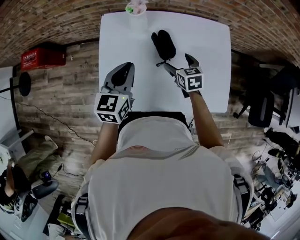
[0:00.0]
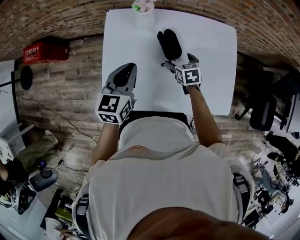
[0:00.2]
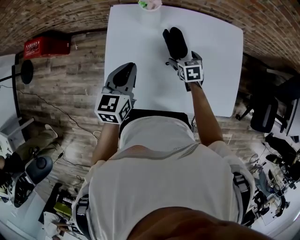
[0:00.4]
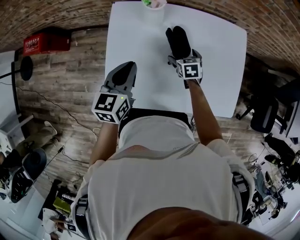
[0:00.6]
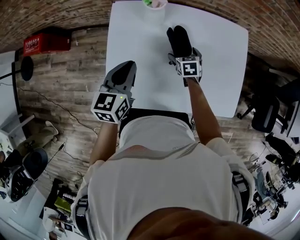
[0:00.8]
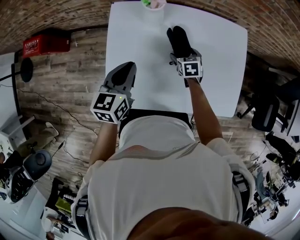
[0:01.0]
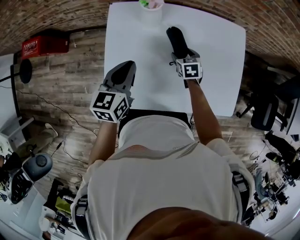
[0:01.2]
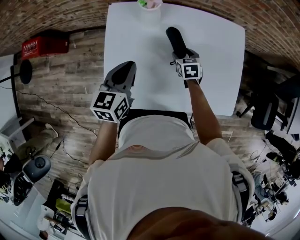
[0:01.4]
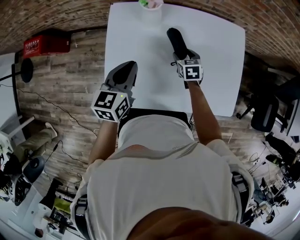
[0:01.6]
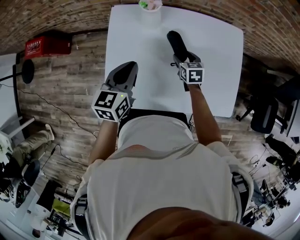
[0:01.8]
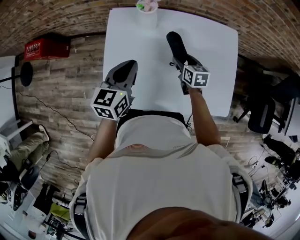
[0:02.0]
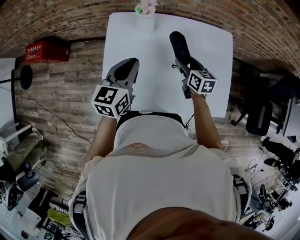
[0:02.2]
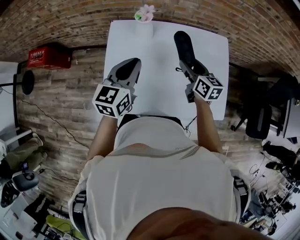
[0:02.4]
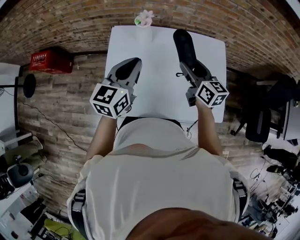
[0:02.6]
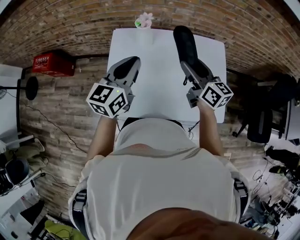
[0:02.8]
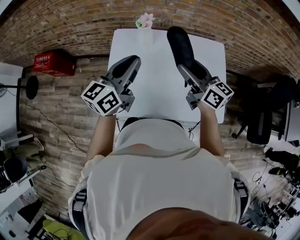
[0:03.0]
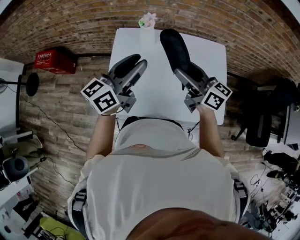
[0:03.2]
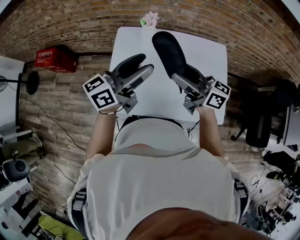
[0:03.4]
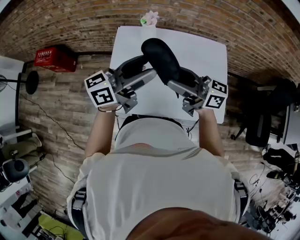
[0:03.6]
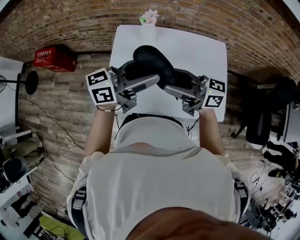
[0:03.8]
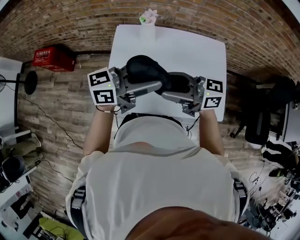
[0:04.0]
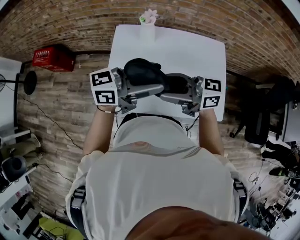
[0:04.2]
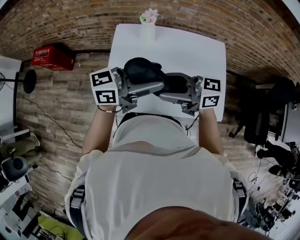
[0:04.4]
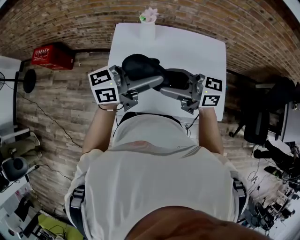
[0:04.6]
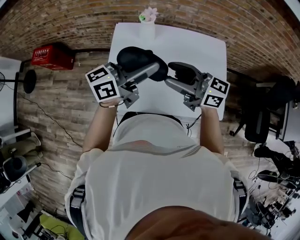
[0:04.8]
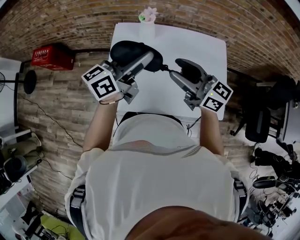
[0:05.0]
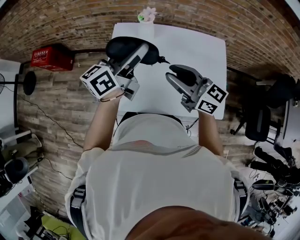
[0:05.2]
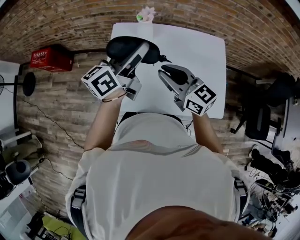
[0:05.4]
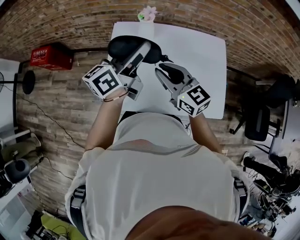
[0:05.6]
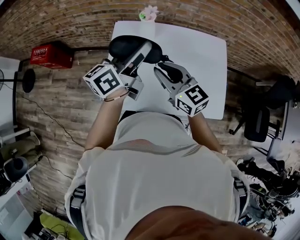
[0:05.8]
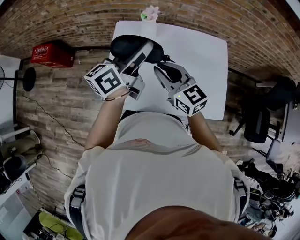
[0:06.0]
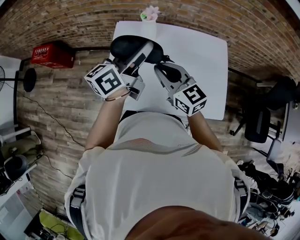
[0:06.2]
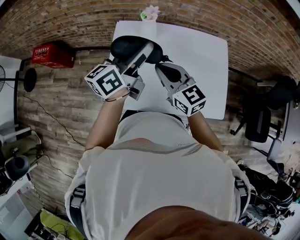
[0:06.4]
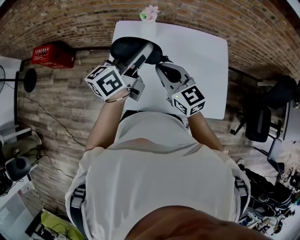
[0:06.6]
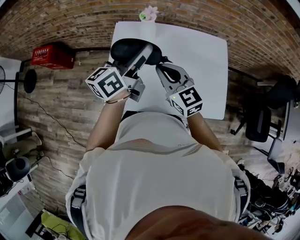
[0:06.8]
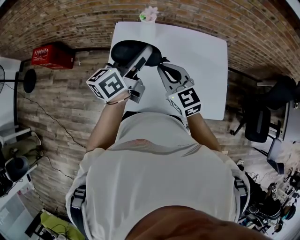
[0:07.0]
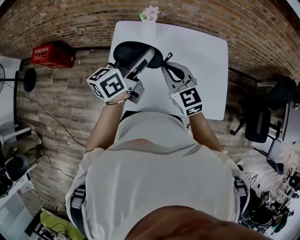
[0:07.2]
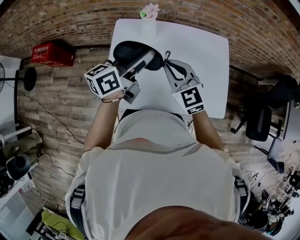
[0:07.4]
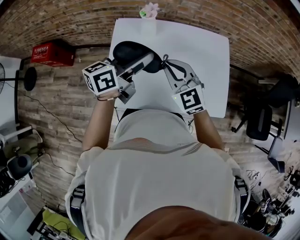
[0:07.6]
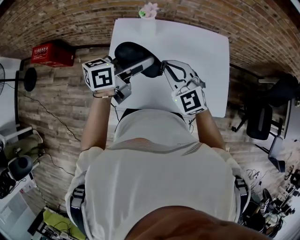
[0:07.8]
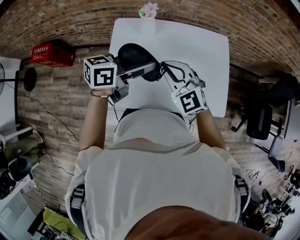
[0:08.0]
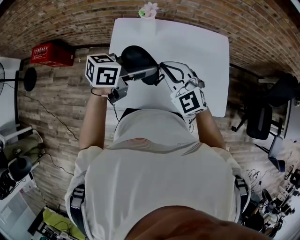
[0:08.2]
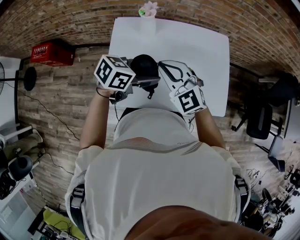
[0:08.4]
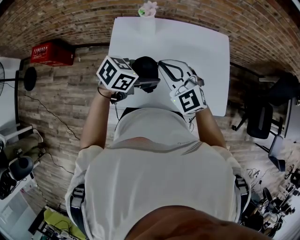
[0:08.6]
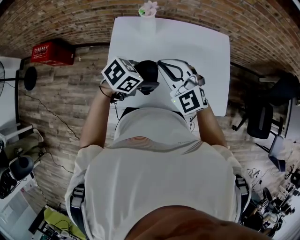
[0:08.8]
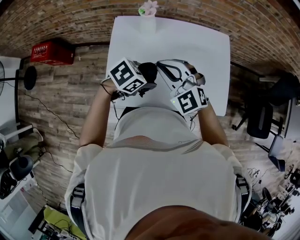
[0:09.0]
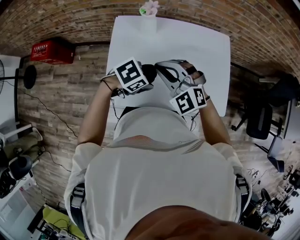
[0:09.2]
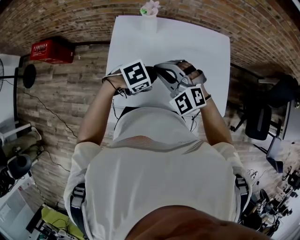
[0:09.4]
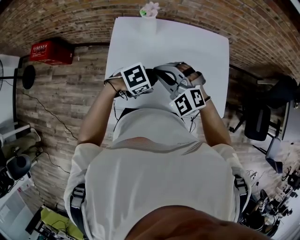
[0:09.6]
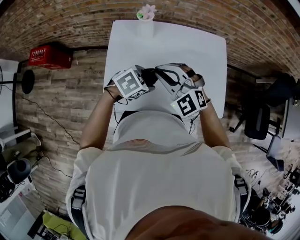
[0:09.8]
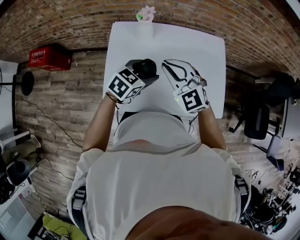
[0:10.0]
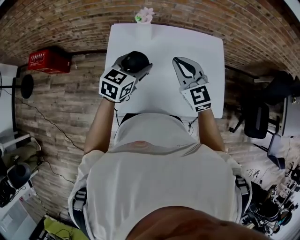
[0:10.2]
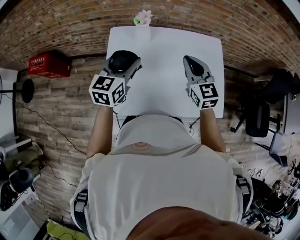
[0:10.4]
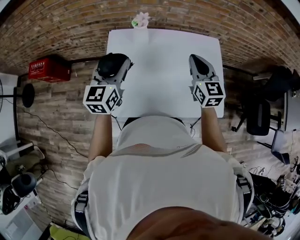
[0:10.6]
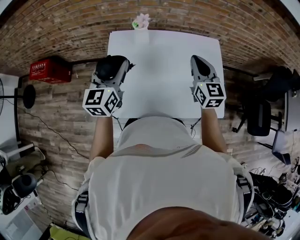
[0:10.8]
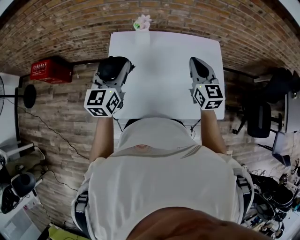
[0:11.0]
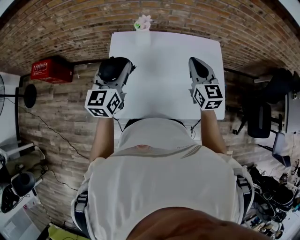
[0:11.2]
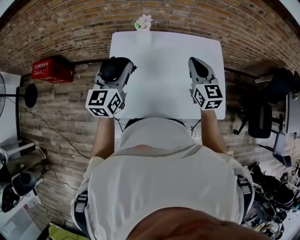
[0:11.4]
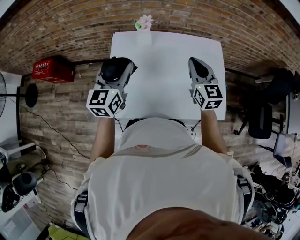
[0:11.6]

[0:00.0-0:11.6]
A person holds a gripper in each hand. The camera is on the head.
0:00.0 to 0:01.4: The right gripper goes approximately 10 cm downward; the left gripper shifts by roughly 5 cm.
0:01.4 to 0:02.8: The right gripper heads upward, covering roughly 30 cm, and angles its fingers upward, by approximately 50 degrees. Meanwhile the left gripper heads upward, covering roughly 15 cm.
0:02.8 to 0:04.4: The right gripper ends up approximately 20 cm from where it was, and changes its angle by approximately 50 degrees. Meanwhile the left gripper ends up approximately 10 cm from where it was, swivels roughly 50 degrees, and opens.
0:04.4 to 0:05.8: The right gripper ends up about 10 cm from where it was, and rotates approximately 40 degrees; the left gripper shifts by some 10 cm, and swivels approximately 40 degrees.
0:05.8 to 0:07.2: The grippers make only small movements.
0:07.2 to 0:08.8: The right gripper turns by about 30 degrees. The left gripper goes some 10 cm downward, and angles its fingers downward, by approximately 40 degrees.
0:08.8 to 0:10.2: The right gripper ends up roughly 5 cm from where it was, and rotates some 20 degrees, while the left gripper reaches approximately 5 cm downward, then returns, and rotates about 40 degrees.
0:10.2 to 0:11.6: The left gripper moves to the left and upward, some 10 cm, and turns by about 30 degrees, while the right gripper goes some 5 cm to the right, and turns by some 20 degrees.

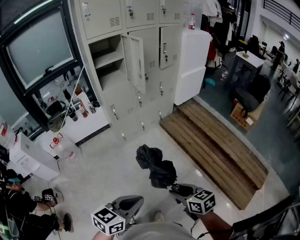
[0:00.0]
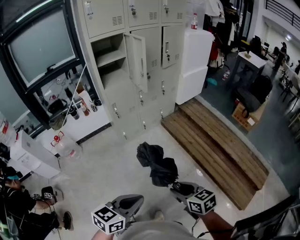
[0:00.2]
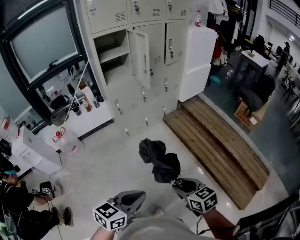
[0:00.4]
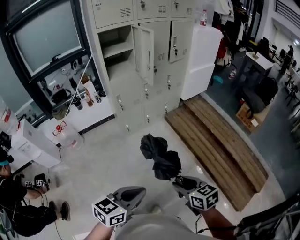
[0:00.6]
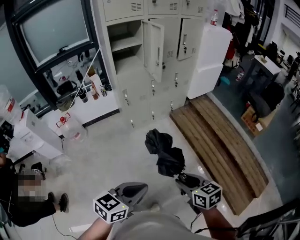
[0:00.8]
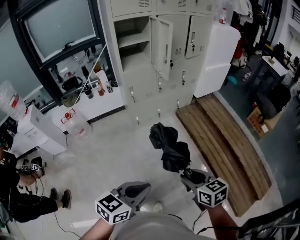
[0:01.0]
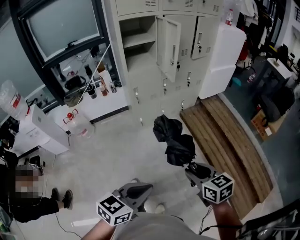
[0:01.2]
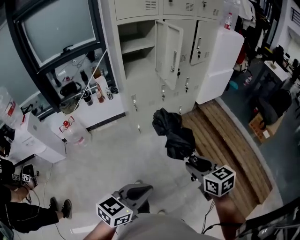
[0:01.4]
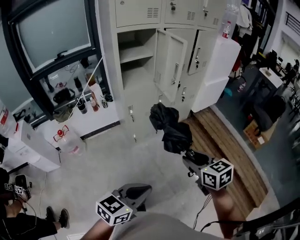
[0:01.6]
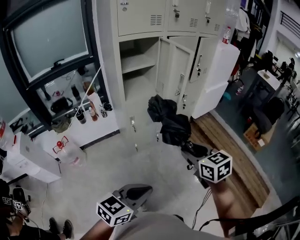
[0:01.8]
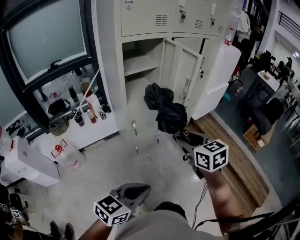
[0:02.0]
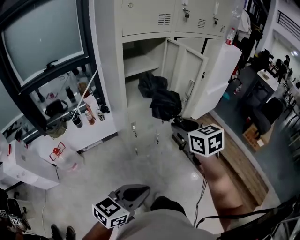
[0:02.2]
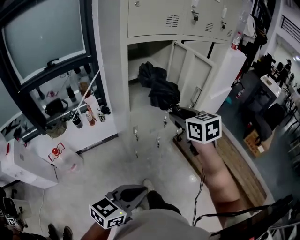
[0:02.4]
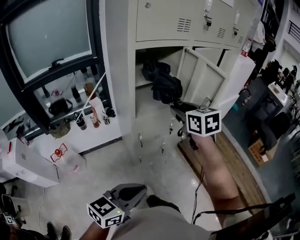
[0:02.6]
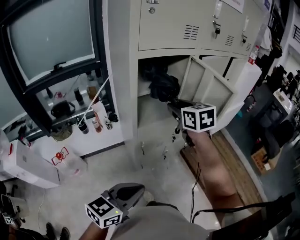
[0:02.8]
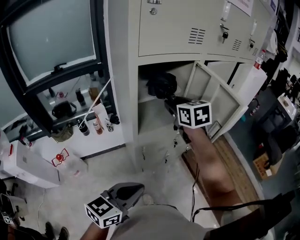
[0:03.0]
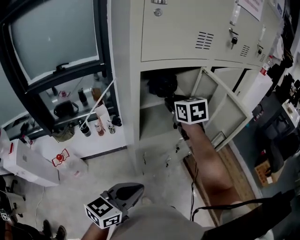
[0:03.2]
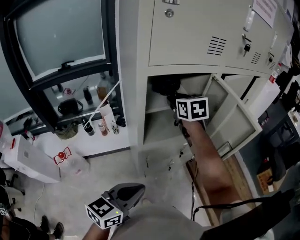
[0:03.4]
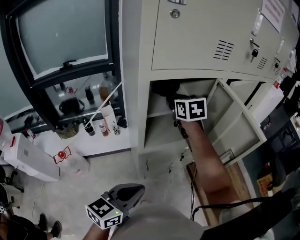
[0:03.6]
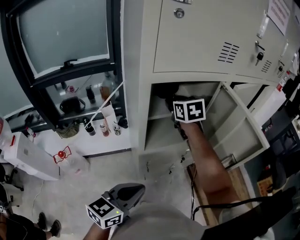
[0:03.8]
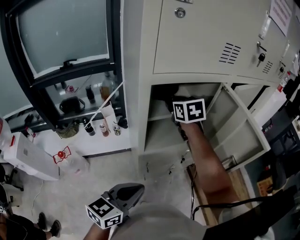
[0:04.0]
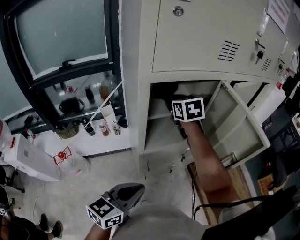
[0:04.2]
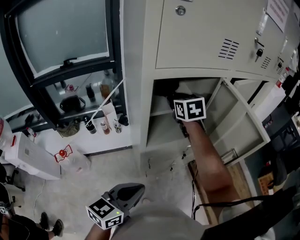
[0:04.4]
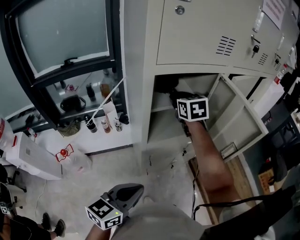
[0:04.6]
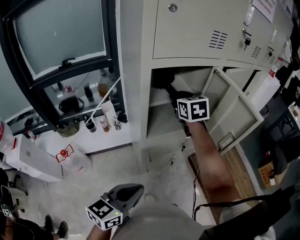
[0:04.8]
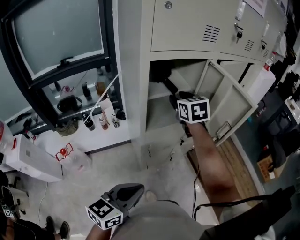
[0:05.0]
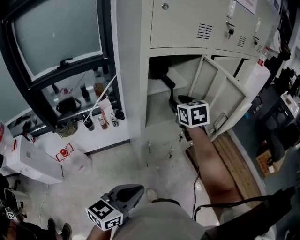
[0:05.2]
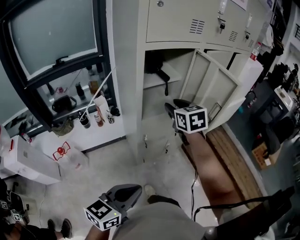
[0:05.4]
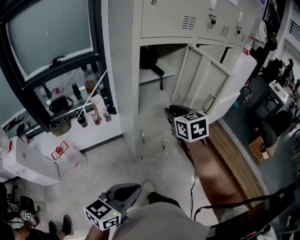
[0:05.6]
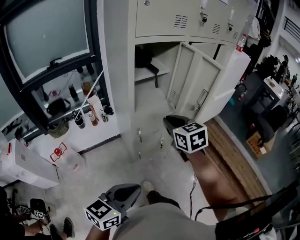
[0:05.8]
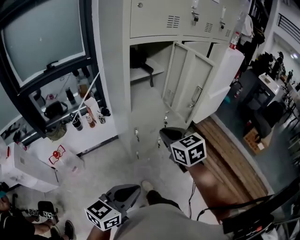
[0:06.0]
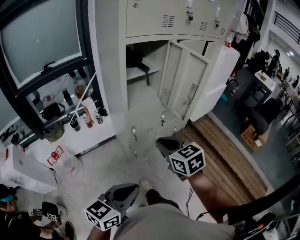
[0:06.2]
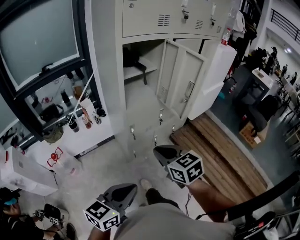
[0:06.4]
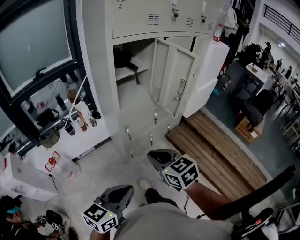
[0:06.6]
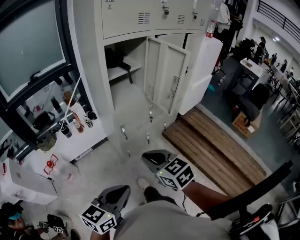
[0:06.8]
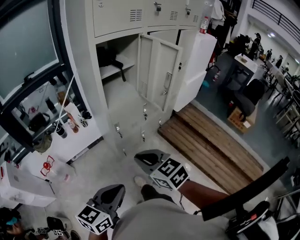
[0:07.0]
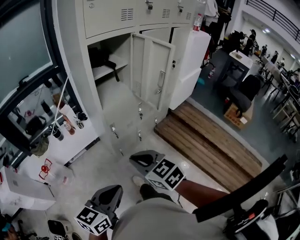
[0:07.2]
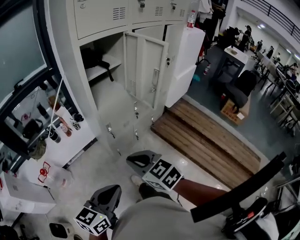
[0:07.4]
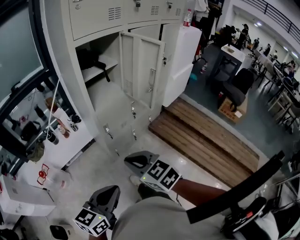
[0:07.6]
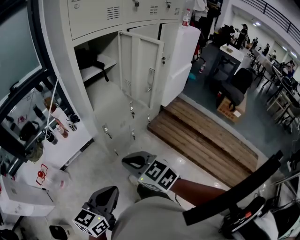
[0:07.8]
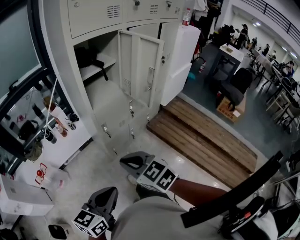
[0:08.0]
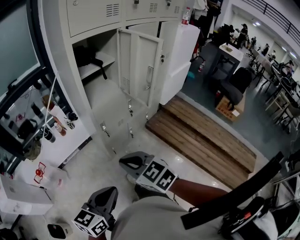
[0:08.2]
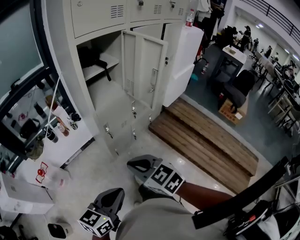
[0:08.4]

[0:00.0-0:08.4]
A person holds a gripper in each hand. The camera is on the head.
0:00.0 to 0:01.4: The right gripper goes roughly 15 cm forward. Meanwhile the left gripper travels forward and to the left by approximately 10 cm.
0:01.4 to 0:02.8: The left gripper moves forward and to the left, some 40 cm, while the right gripper goes some 60 cm forward and to the left.
0:02.8 to 0:04.2: The right gripper shifts about 20 cm forward and to the left. Meanwhile the left gripper goes approximately 15 cm forward.
0:04.2 to 0:05.6: The grippers both shift backward by some 25 cm.
0:05.6 to 0:07.0: The right gripper moves backward, approximately 25 cm; the left gripper shifts approximately 5 cm backward.
0:07.0 to 0:08.4: The grippers stay close to where they were, moving slightly.

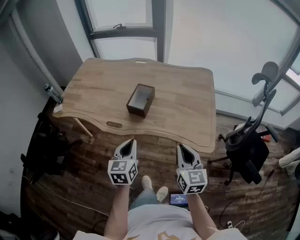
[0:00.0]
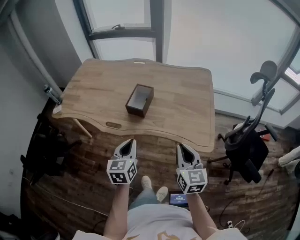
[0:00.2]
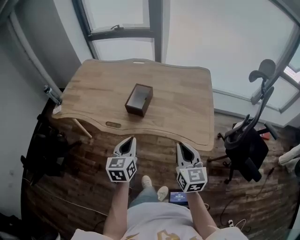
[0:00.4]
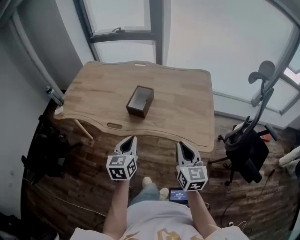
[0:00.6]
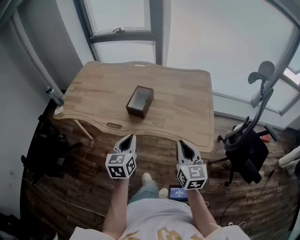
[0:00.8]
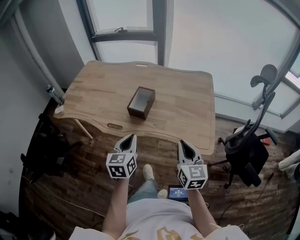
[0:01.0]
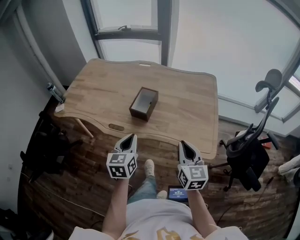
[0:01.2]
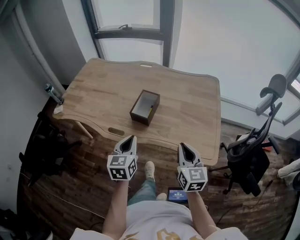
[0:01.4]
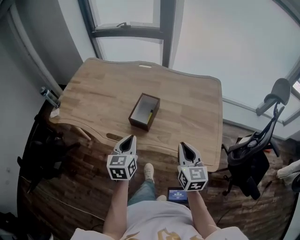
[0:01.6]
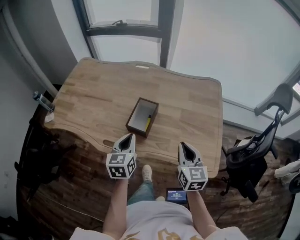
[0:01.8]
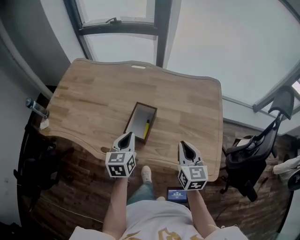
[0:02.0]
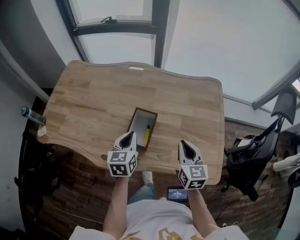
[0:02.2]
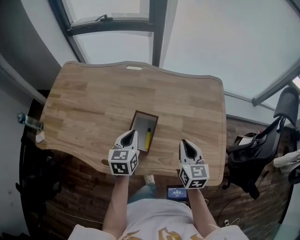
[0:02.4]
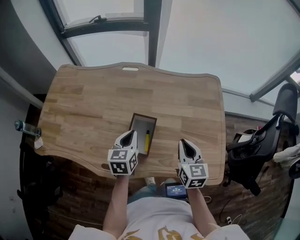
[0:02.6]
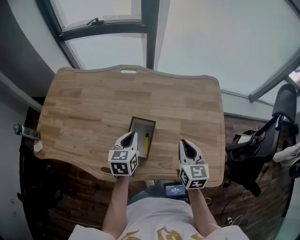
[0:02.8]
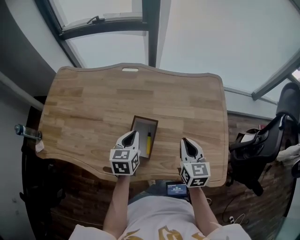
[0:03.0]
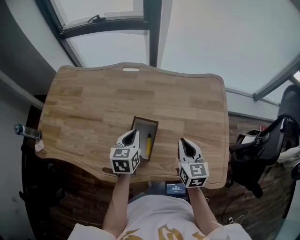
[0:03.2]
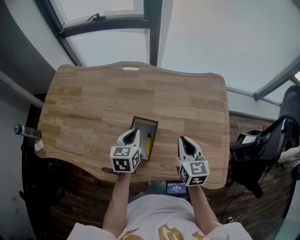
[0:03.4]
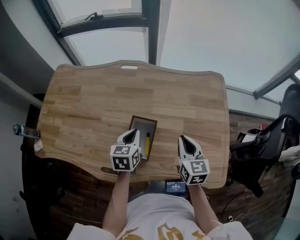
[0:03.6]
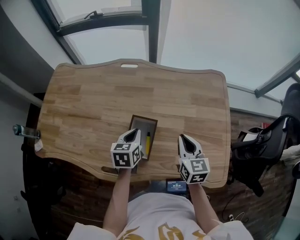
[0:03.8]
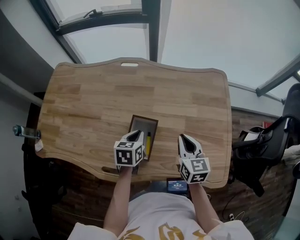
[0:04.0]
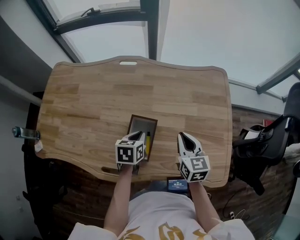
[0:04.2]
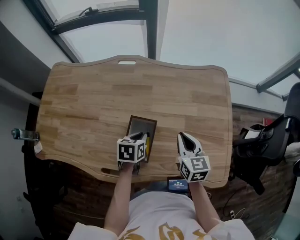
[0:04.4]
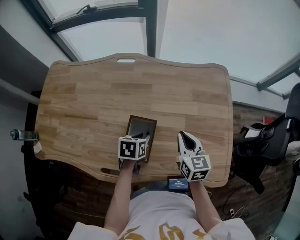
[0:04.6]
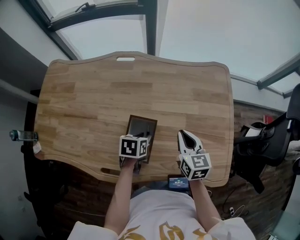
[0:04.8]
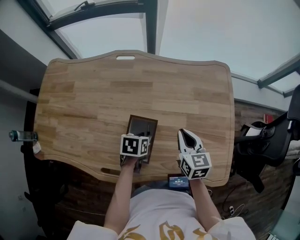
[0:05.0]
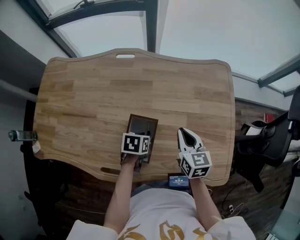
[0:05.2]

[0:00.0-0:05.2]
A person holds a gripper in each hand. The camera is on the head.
0:00.0 to 0:01.8: Both grippers travel together forward, roughly 20 cm.
0:01.8 to 0:03.4: The two grippers go some 20 cm forward.
0:03.4 to 0:05.2: The right gripper shifts by some 5 cm, while the left gripper goes approximately 15 cm downward, changes its angle by roughly 40 degrees, and opens.
